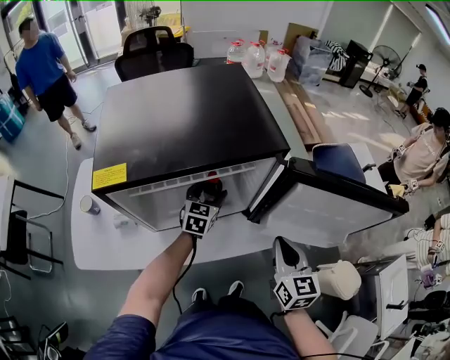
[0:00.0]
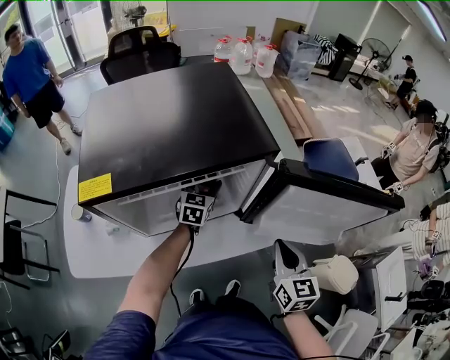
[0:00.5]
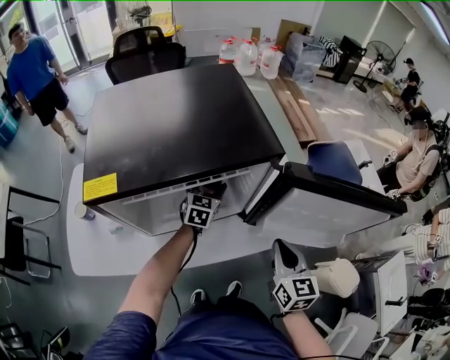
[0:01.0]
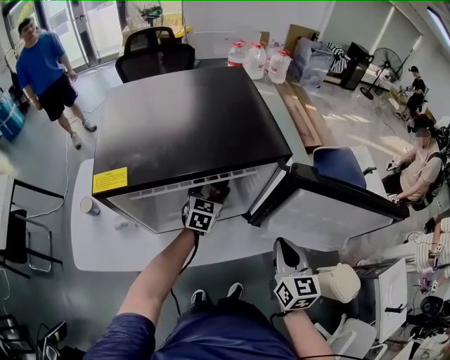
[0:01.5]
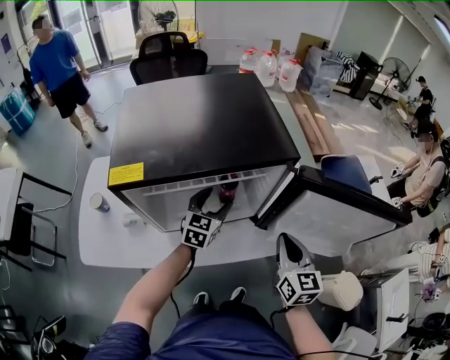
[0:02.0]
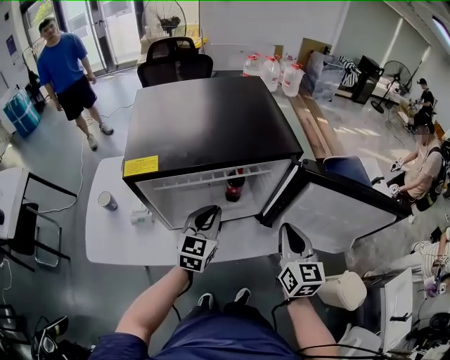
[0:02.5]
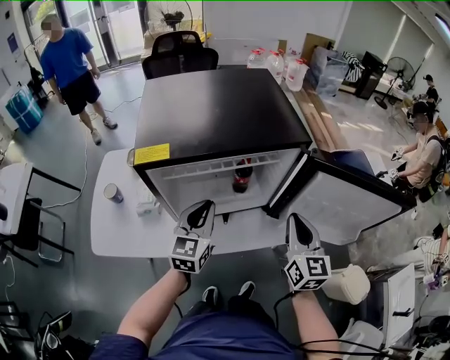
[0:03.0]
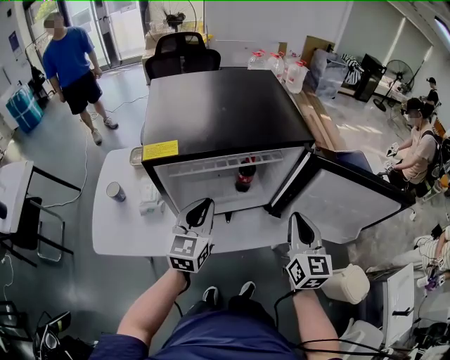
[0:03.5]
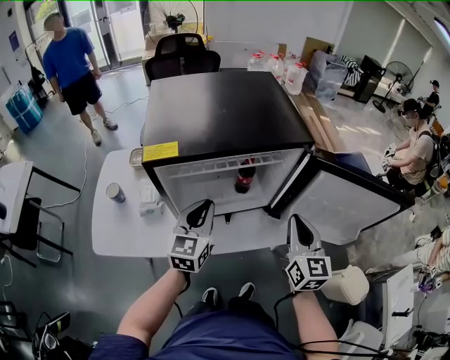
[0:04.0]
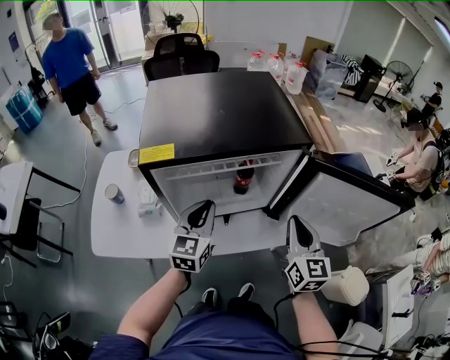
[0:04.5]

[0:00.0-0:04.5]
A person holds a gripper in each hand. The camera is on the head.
0:00.0 to 0:02.0: The left gripper ends up about 5 cm from where it was.
0:02.0 to 0:04.5: The right gripper ends up approximately 5 cm from where it was; the left gripper moves backward, upward and to the left, about 15 cm, and closes its fingers.

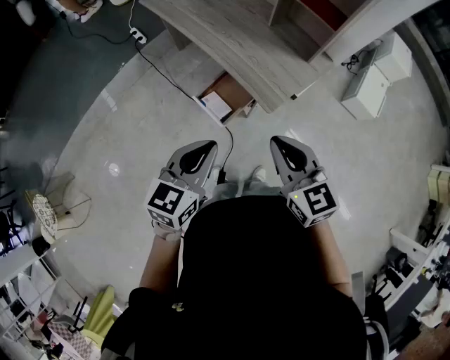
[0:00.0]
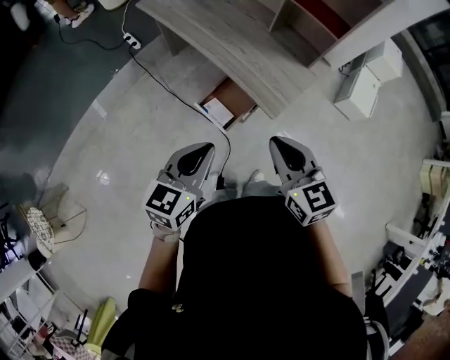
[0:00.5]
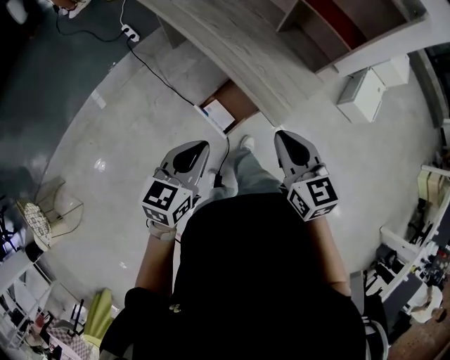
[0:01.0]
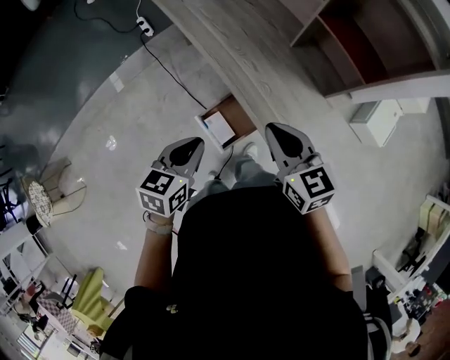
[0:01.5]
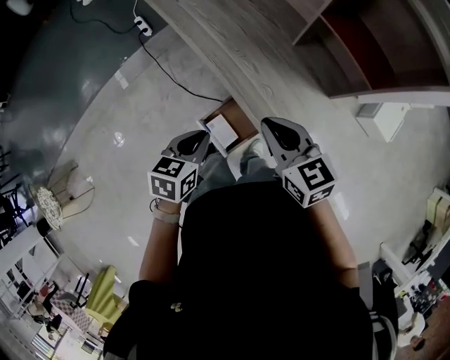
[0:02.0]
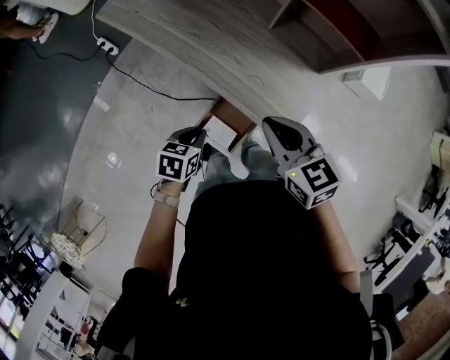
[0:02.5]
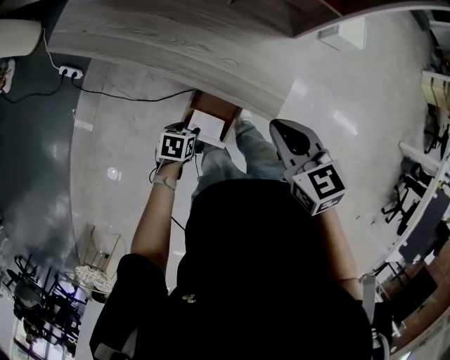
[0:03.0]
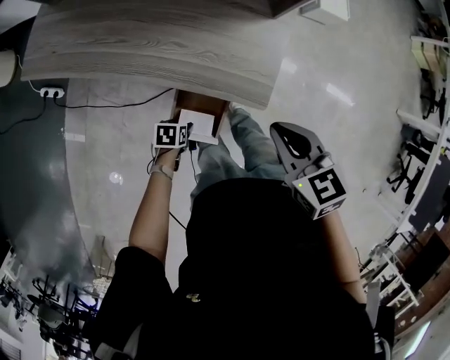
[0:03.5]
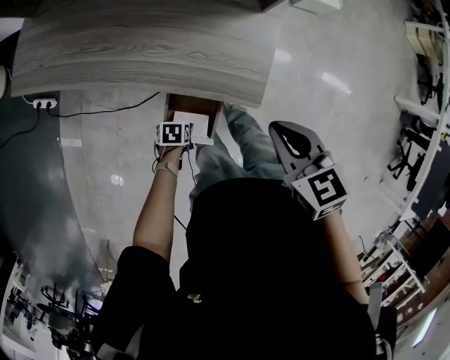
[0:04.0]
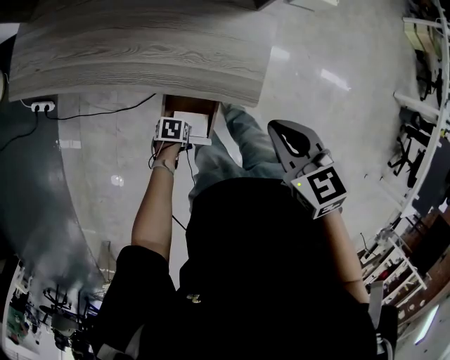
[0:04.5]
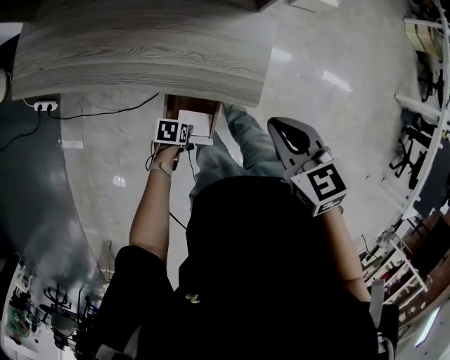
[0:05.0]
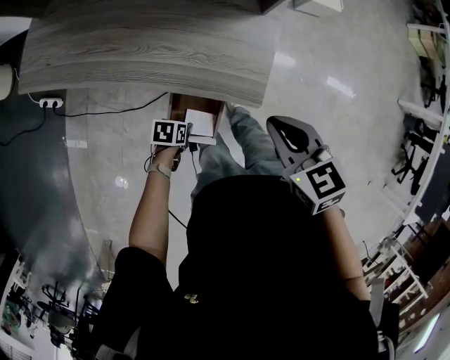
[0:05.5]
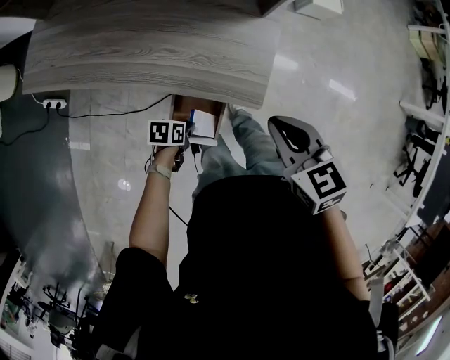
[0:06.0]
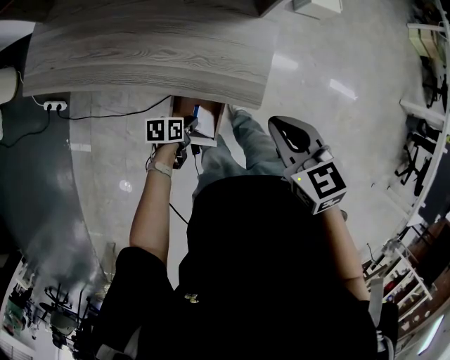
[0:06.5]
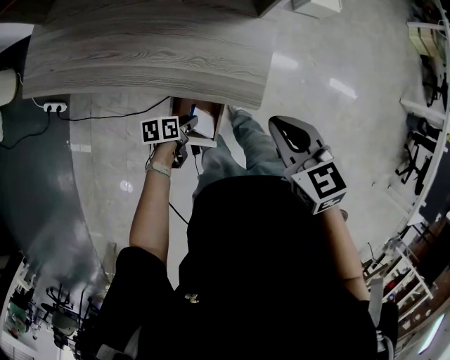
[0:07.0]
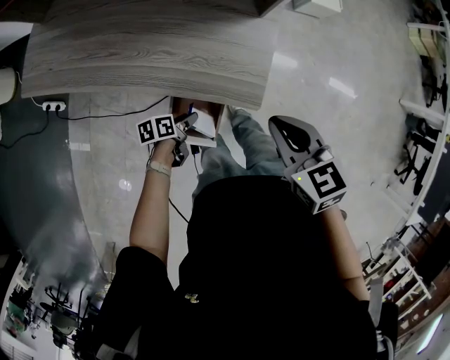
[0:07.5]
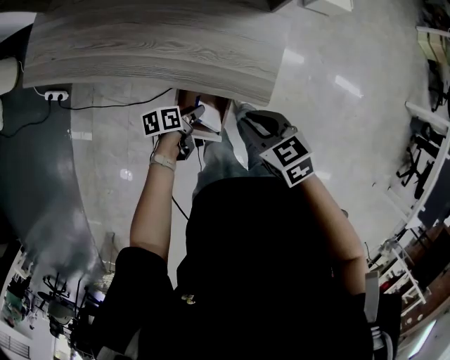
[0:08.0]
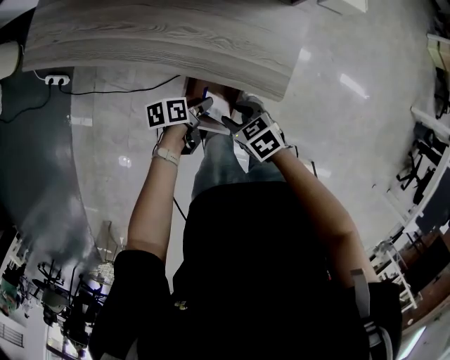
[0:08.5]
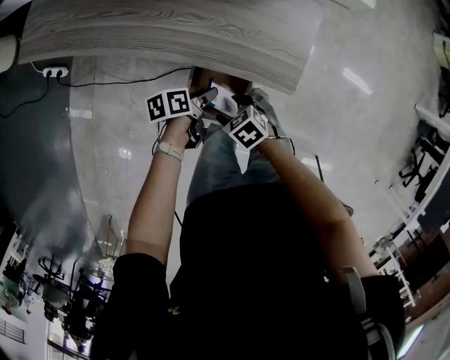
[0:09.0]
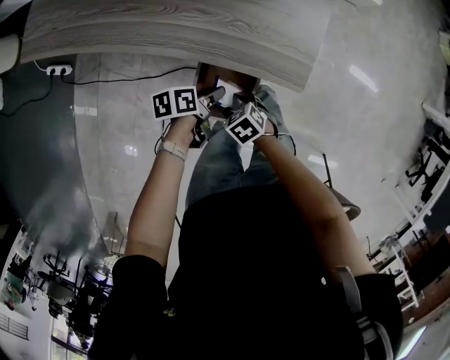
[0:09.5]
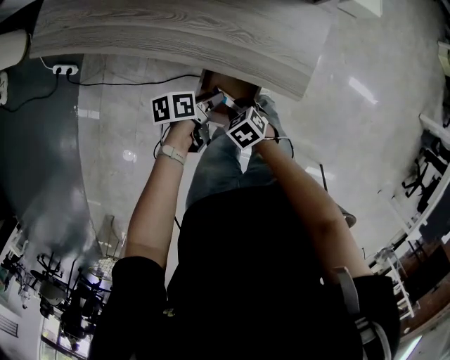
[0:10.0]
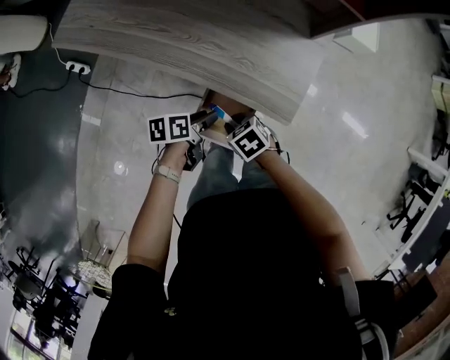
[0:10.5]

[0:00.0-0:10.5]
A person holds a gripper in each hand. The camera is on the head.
0:00.0 to 0:02.0: The right gripper moves forward, approximately 25 cm, while the left gripper shifts about 25 cm forward and downward, and turns by approximately 30 degrees.
0:02.0 to 0:04.0: The right gripper changes place by approximately 10 cm, and rotates roughly 40 degrees; the left gripper is displaced downward by about 35 cm, swivels about 50 degrees, and opens its fingers.
0:04.0 to 0:06.5: The left gripper shifts about 10 cm upward, changes its angle by roughly 20 degrees, and closes its fingers.
0:06.5 to 0:08.5: The left gripper opens, while the right gripper heads downward, covering approximately 25 cm, changes its angle by roughly 30 degrees, and opens.
0:08.5 to 0:10.5: The left gripper heads upward, covering roughly 5 cm; the right gripper moves roughly 10 cm downward and comes back, and opens, then closes again.

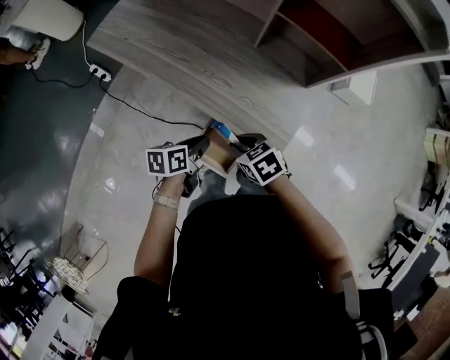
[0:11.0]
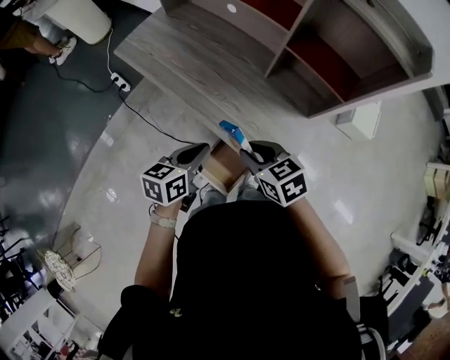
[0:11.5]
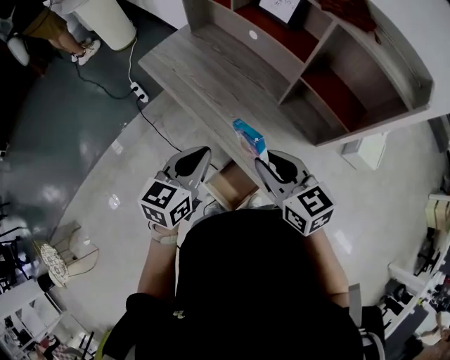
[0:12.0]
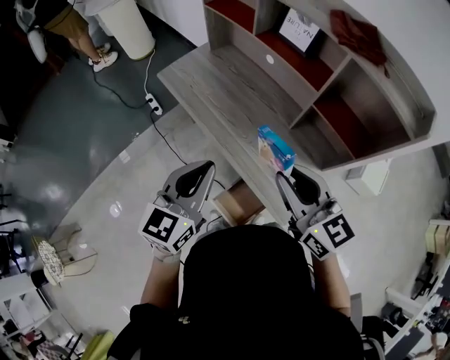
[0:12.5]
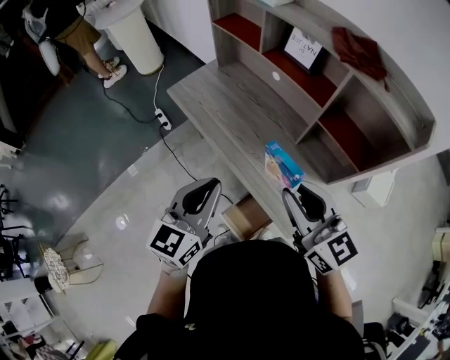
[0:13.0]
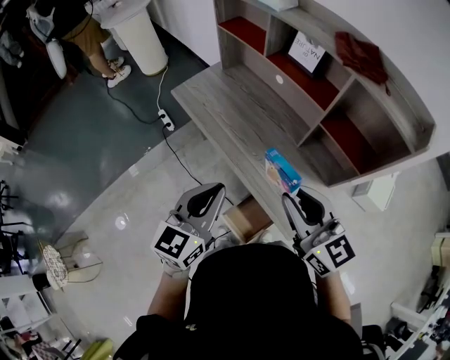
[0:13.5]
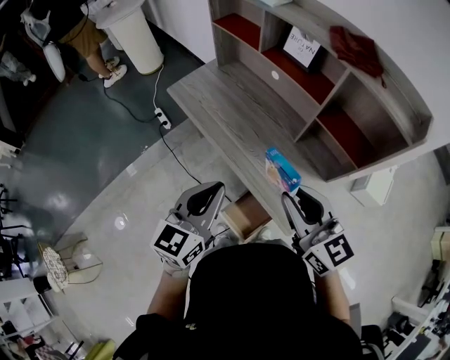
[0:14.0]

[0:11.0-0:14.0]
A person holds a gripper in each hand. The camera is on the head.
0:11.0 to 0:12.5: Both grippers travel together upward, approximately 35 cm. The left gripper turns by approximately 60 degrees, while the right gripper points its fingers approximately 50 degrees further upward.
0:12.5 to 0:14.0: The grippers move only a little.

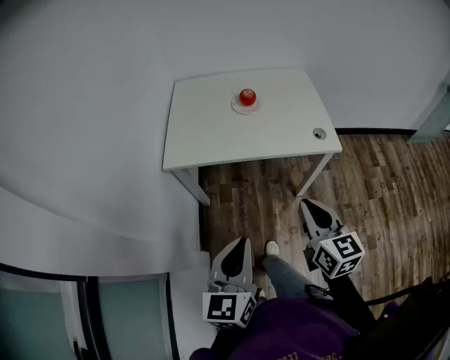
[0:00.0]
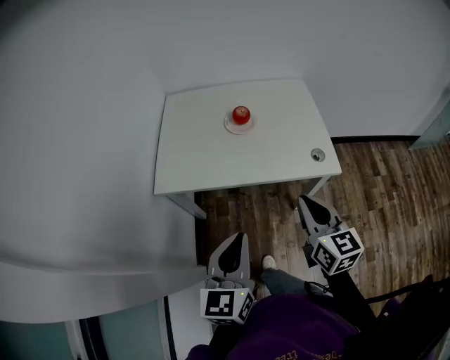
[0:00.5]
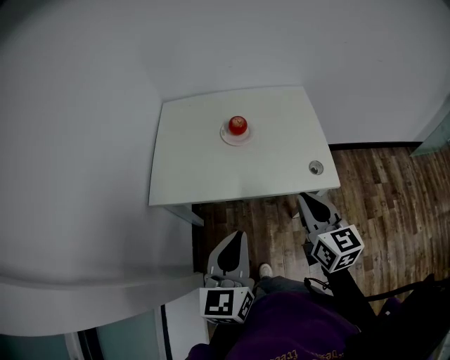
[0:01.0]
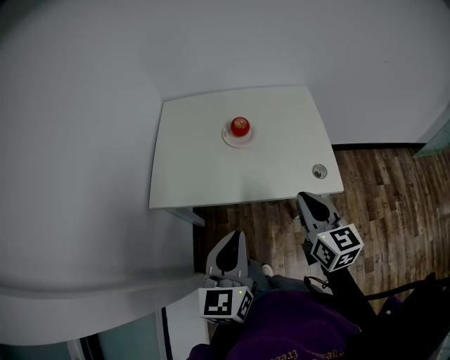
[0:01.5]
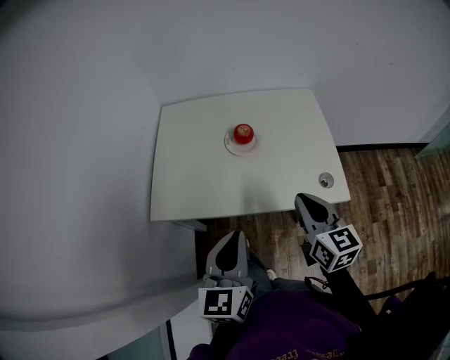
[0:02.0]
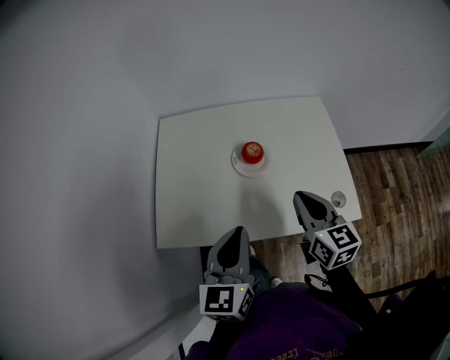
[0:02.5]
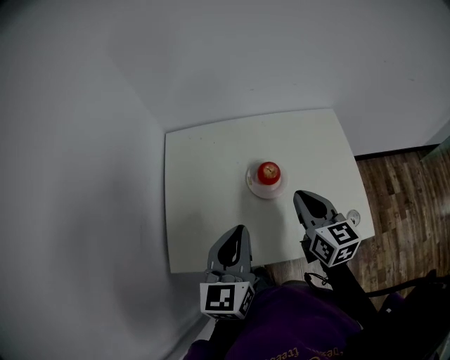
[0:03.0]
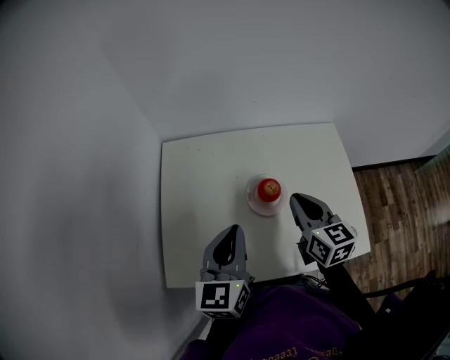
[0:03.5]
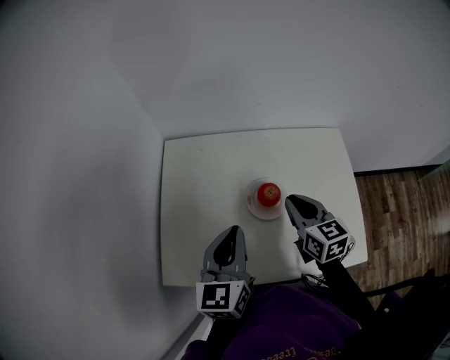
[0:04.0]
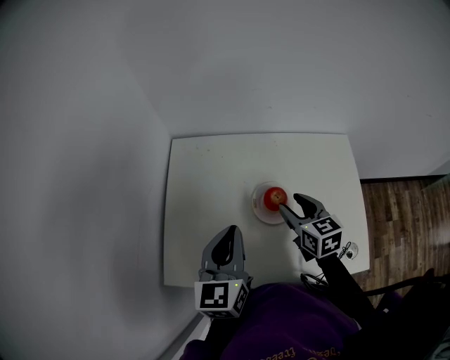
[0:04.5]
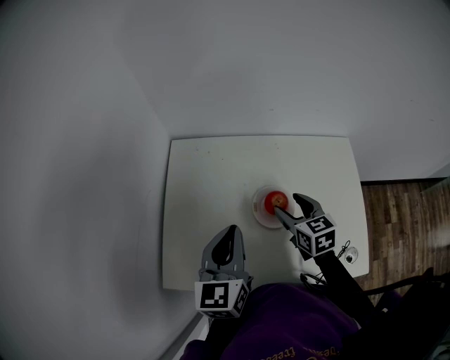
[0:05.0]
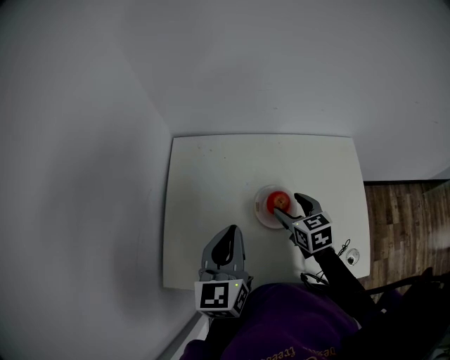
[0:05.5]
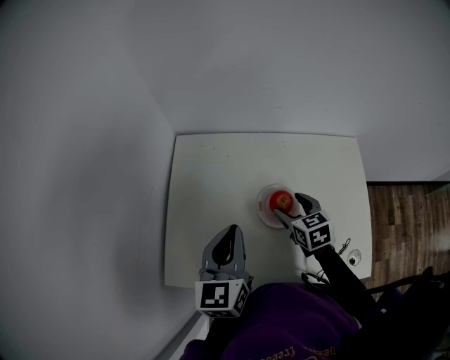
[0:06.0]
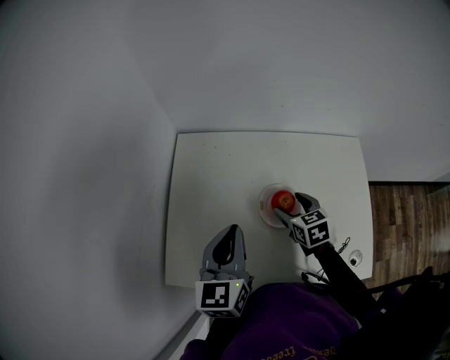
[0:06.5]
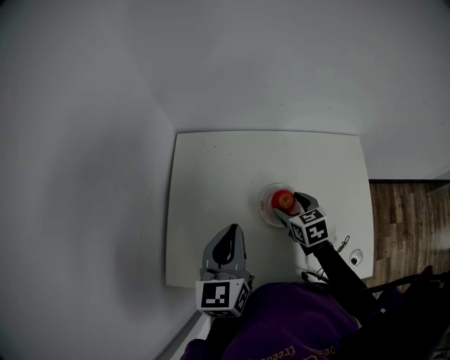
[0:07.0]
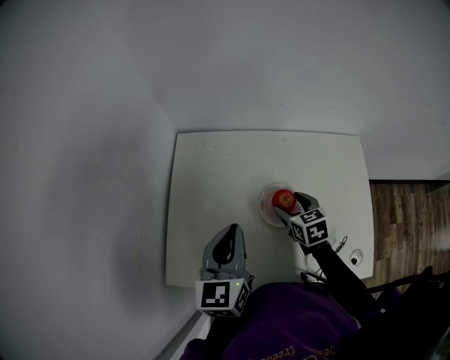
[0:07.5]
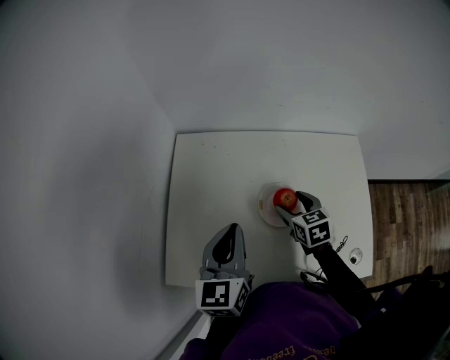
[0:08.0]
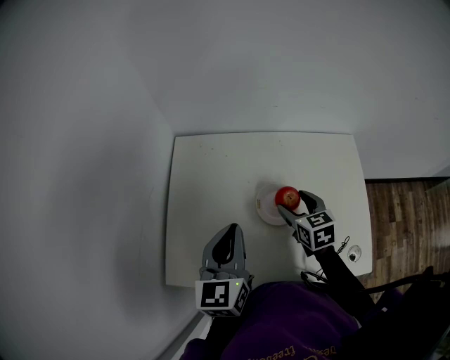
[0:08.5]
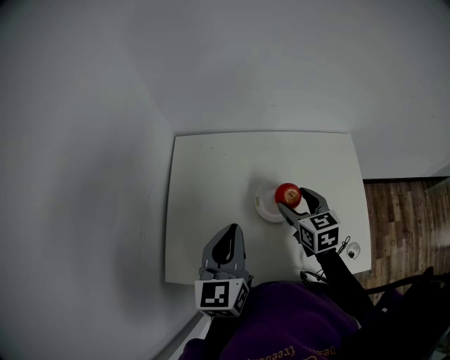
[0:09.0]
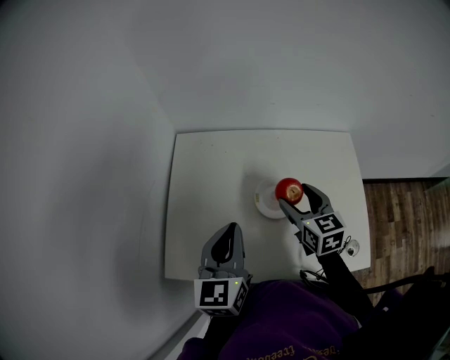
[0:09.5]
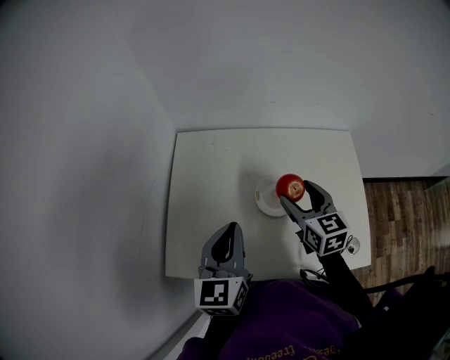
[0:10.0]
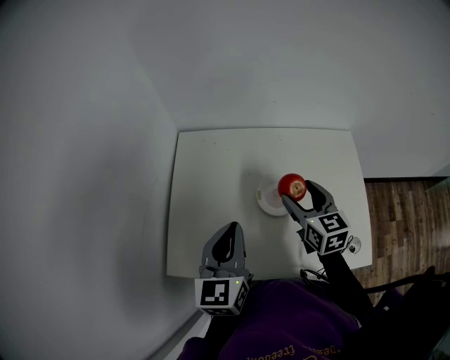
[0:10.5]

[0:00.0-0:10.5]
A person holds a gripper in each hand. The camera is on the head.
0:00.0 to 0:02.0: The grippers both shift forward by some 25 cm.
0:02.0 to 0:04.0: Both grippers move forward, approximately 25 cm.
0:04.0 to 0:06.5: The right gripper heads downward and forward, covering approximately 15 cm, swivels roughly 20 degrees, and opens up.
0:06.5 to 0:08.5: The grippers stay close to where they were, moving slightly.
0:08.5 to 0:10.5: The right gripper goes some 10 cm upward.
